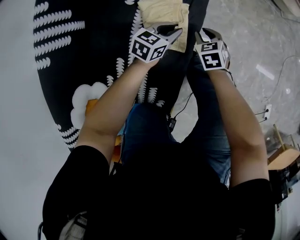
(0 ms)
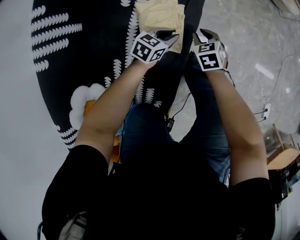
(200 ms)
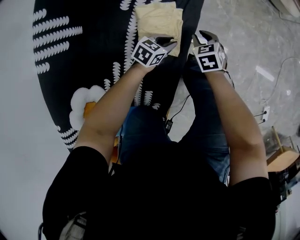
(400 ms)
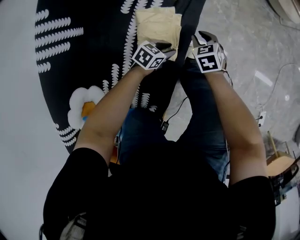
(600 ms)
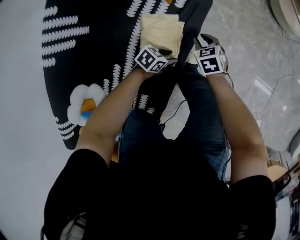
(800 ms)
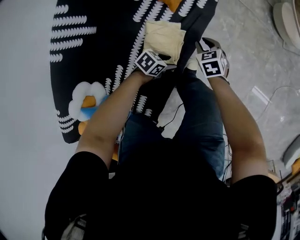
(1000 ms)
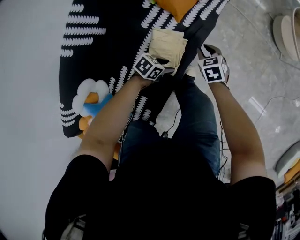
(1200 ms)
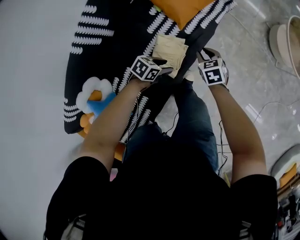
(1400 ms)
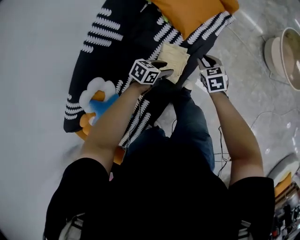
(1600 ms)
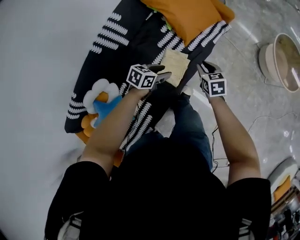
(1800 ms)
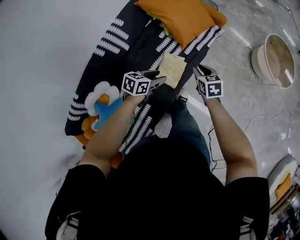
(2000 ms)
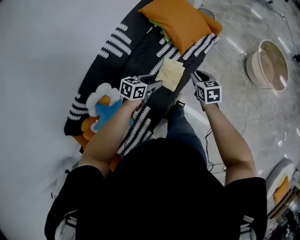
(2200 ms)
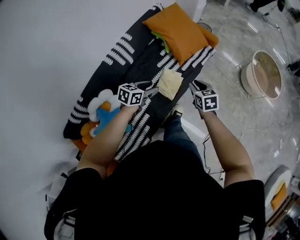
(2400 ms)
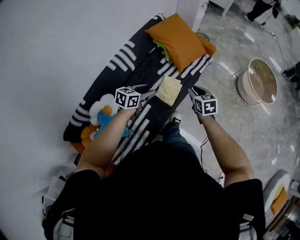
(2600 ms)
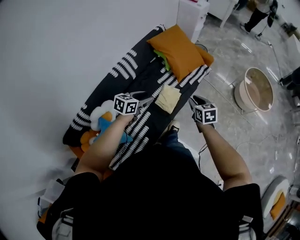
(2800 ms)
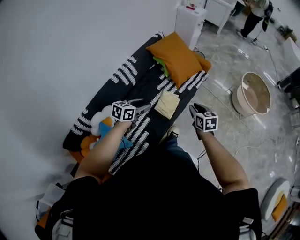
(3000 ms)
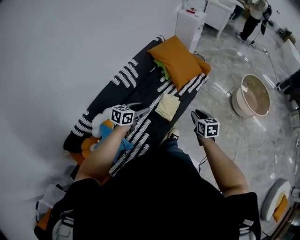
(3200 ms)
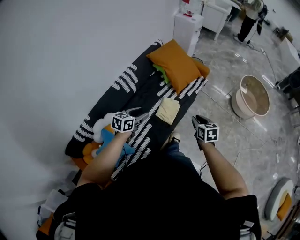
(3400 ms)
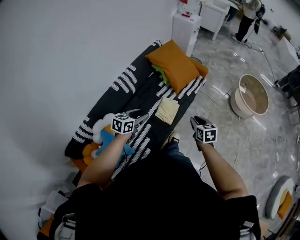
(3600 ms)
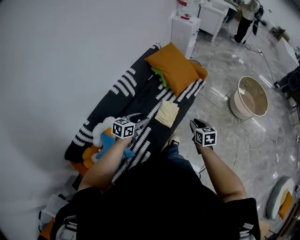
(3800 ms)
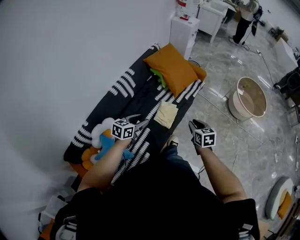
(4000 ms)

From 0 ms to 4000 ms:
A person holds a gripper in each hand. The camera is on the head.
From 0 ms to 1400 ms: The left gripper is displaced upward by roughly 10 cm, changes its angle by approximately 20 degrees, and opens. Meanwhile the right gripper shifts roughly 20 cm upward.
From 1400 ms to 2600 ms: Both grippers move upward and backward, approximately 40 cm. The left gripper swivels roughly 30 degrees.
From 2600 ms to 4000 ms: Both grippers travel together backward, about 10 cm.

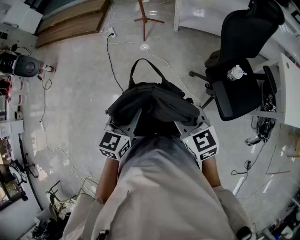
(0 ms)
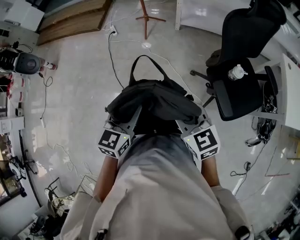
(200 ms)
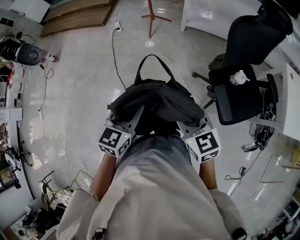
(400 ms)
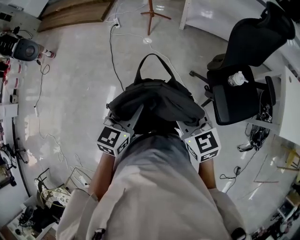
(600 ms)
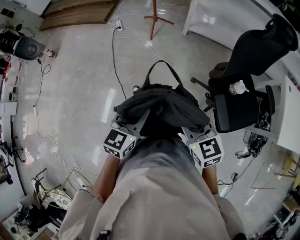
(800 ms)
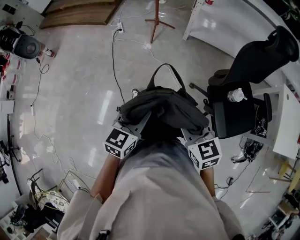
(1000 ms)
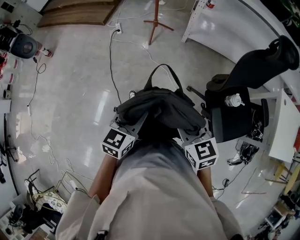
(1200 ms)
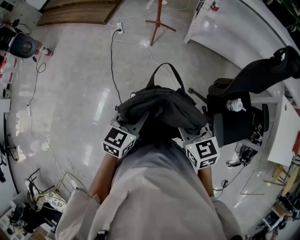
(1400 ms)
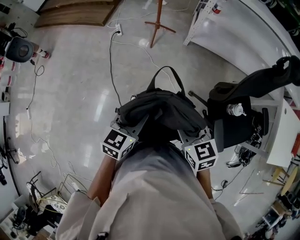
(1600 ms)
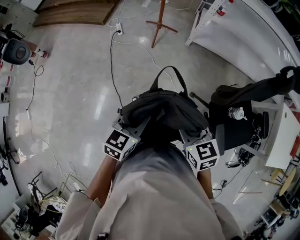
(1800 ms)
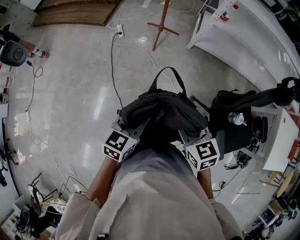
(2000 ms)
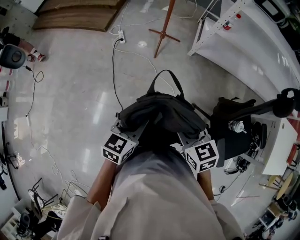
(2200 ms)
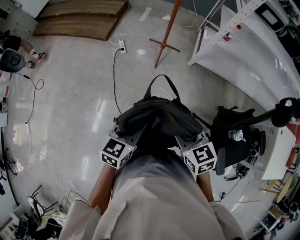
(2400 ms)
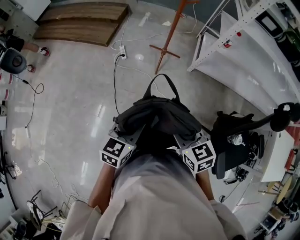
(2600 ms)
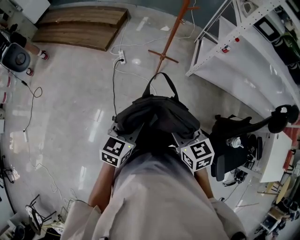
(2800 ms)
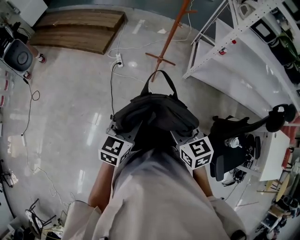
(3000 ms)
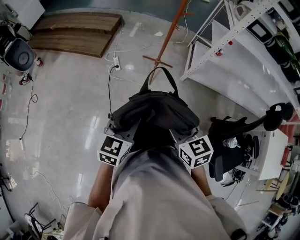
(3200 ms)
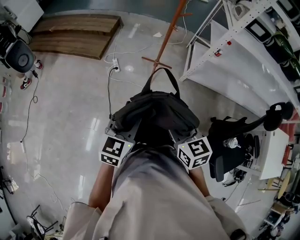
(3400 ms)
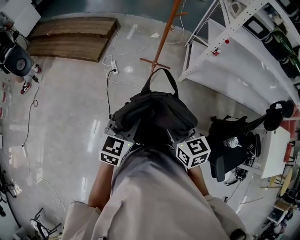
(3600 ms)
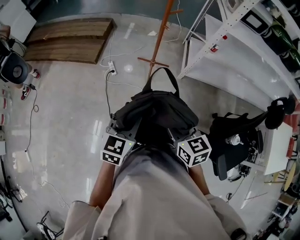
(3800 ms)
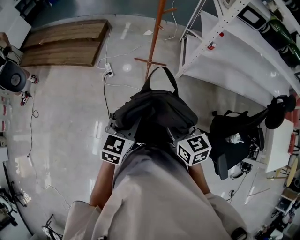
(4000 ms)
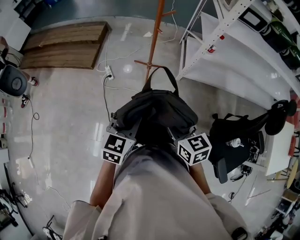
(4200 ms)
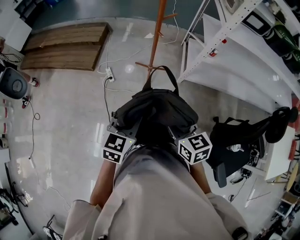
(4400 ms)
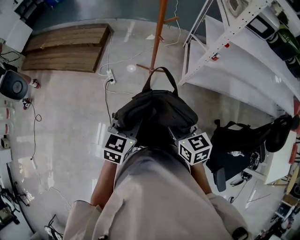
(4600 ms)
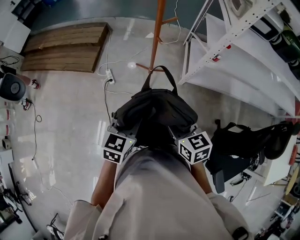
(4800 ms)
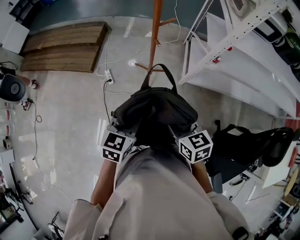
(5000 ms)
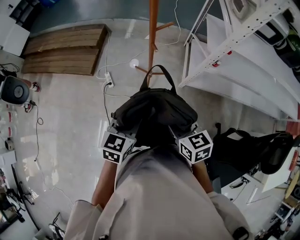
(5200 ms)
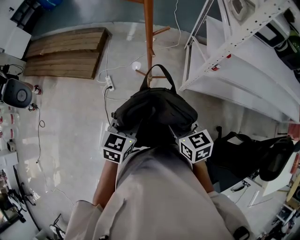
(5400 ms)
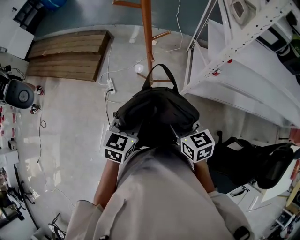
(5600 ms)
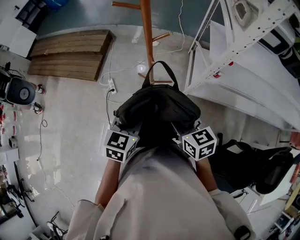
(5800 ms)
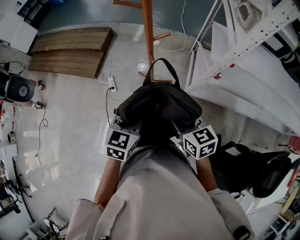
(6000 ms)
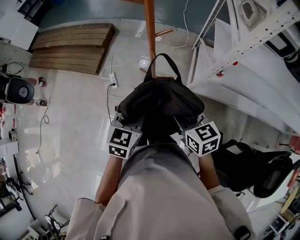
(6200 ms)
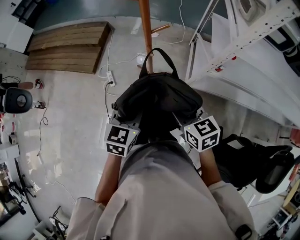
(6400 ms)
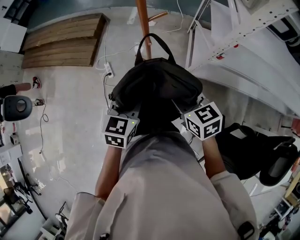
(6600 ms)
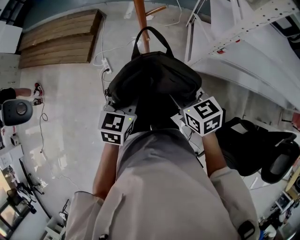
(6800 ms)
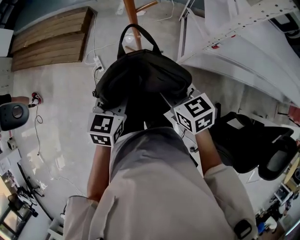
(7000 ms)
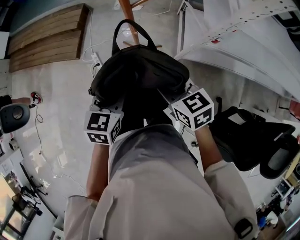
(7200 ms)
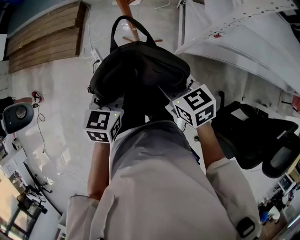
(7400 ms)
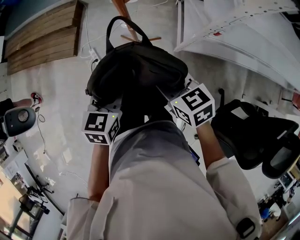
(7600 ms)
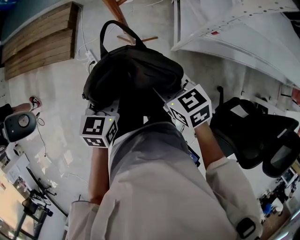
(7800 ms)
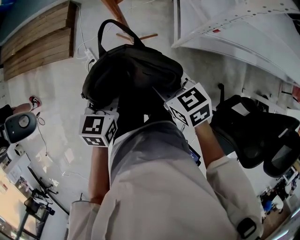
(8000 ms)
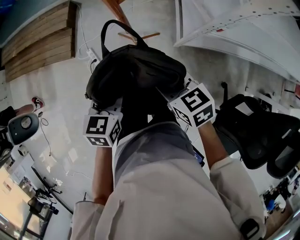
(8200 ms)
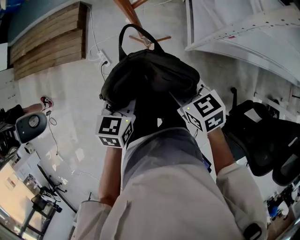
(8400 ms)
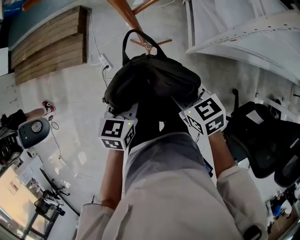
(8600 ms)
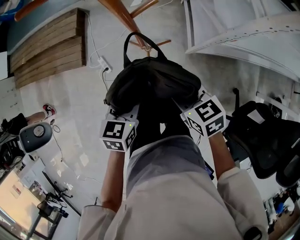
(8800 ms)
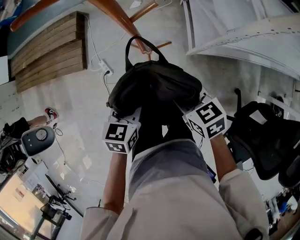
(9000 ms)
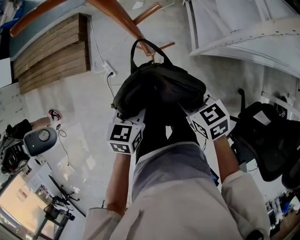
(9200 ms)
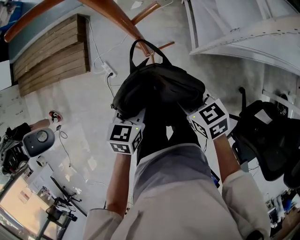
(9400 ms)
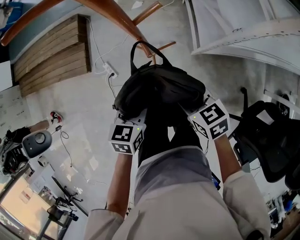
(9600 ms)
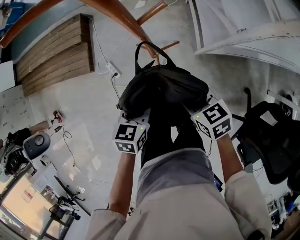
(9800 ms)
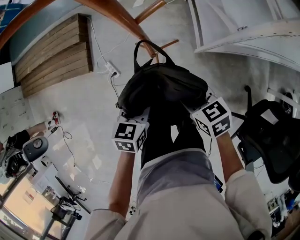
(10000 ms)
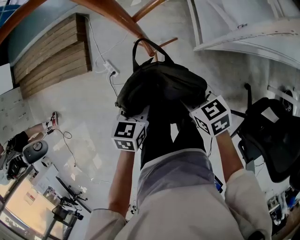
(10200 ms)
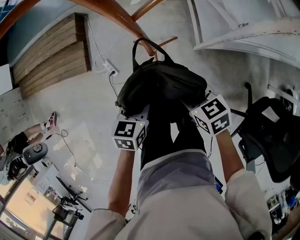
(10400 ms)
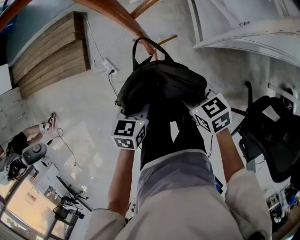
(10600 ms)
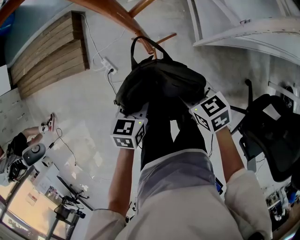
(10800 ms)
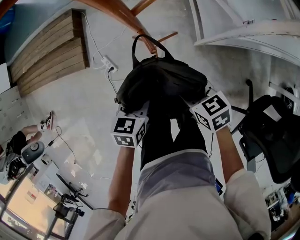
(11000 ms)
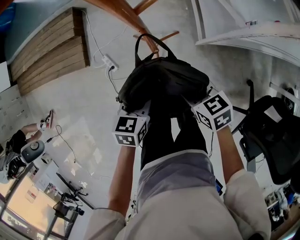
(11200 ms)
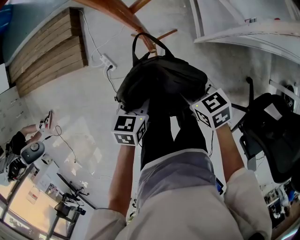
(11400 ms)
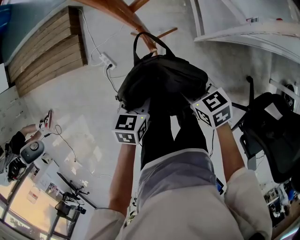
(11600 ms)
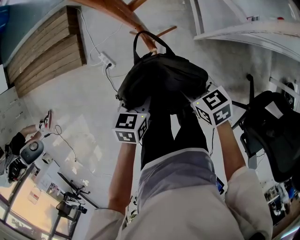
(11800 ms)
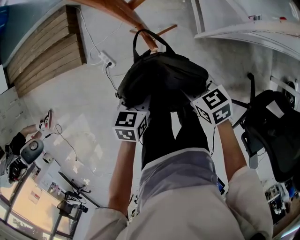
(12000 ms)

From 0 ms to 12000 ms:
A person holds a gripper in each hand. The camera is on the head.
From 0 ms to 1600 ms: Both grippers move forward, roughly 15 cm.
From 1600 ms to 3000 ms: The two grippers go about 30 cm forward and to the left.
From 3000 ms to 4400 ms: The grippers both shift forward and to the right by some 15 cm.
From 4400 ms to 6000 ms: Both grippers move forward and to the right, some 25 cm.
From 6000 ms to 7600 ms: The grippers both shift forward and downward by some 10 cm.
From 7600 ms to 9000 ms: The two grippers go some 5 cm downward.
From 9000 ms to 10400 ms: Both grippers travel together downward, some 5 cm.
From 10400 ms to 12000 ms: Both grippers travel together downward, roughly 5 cm.

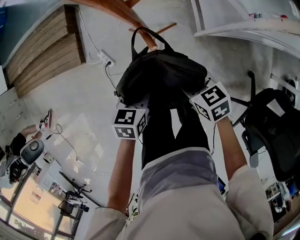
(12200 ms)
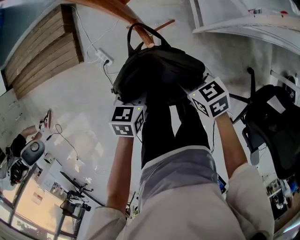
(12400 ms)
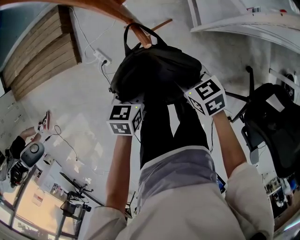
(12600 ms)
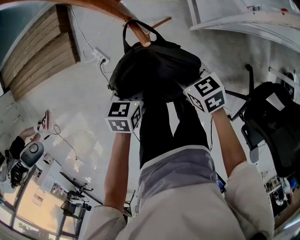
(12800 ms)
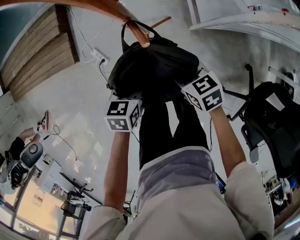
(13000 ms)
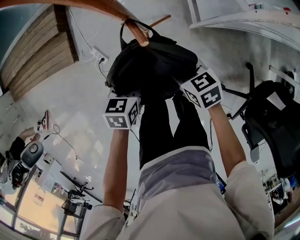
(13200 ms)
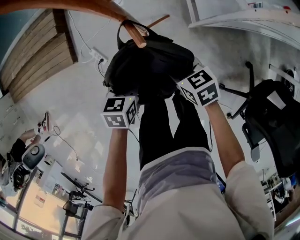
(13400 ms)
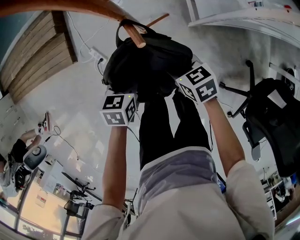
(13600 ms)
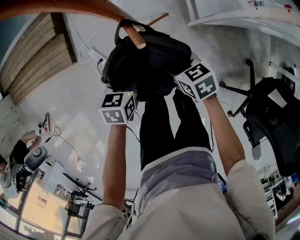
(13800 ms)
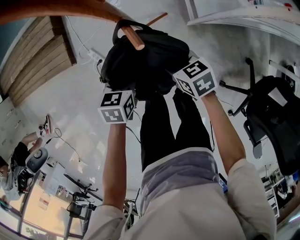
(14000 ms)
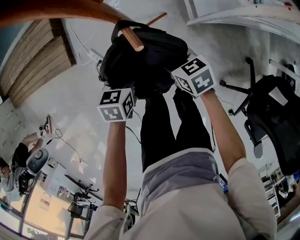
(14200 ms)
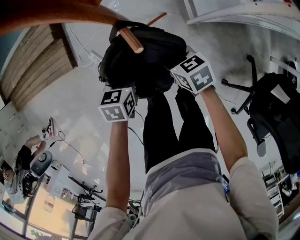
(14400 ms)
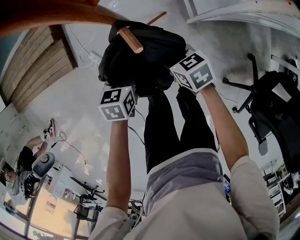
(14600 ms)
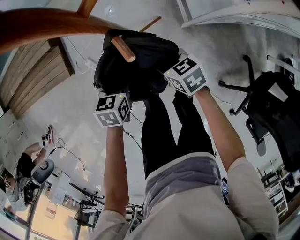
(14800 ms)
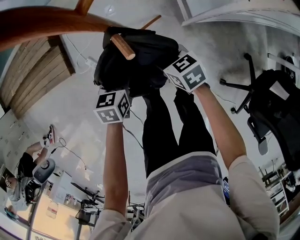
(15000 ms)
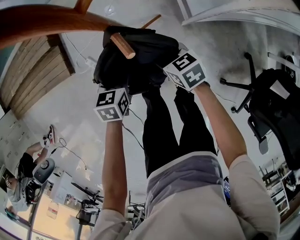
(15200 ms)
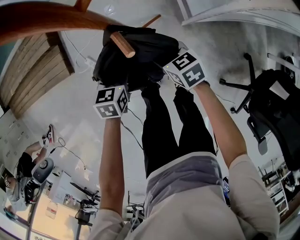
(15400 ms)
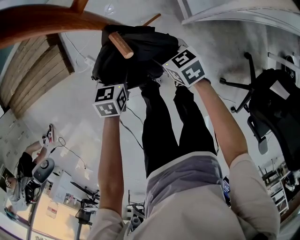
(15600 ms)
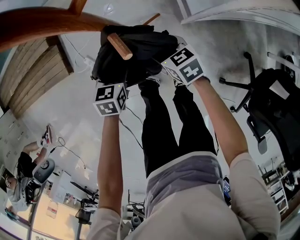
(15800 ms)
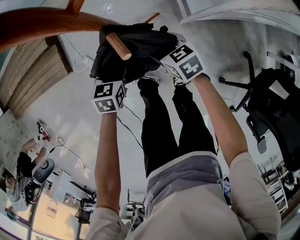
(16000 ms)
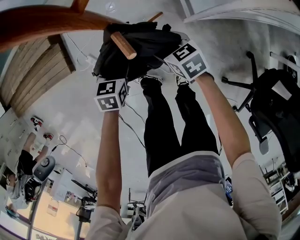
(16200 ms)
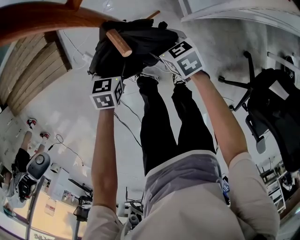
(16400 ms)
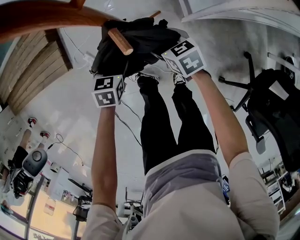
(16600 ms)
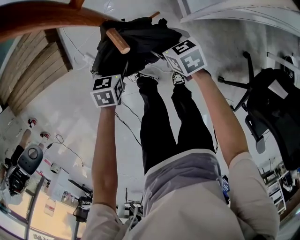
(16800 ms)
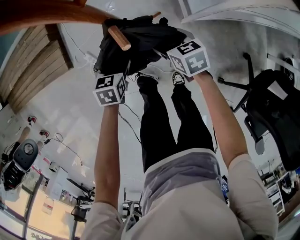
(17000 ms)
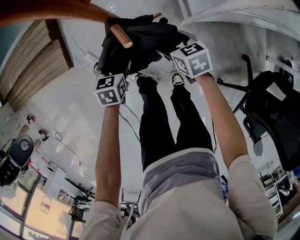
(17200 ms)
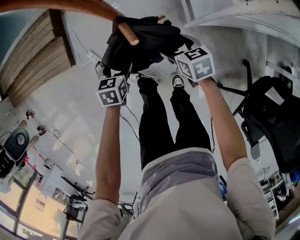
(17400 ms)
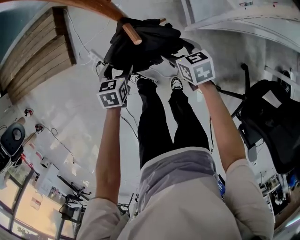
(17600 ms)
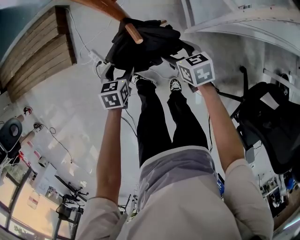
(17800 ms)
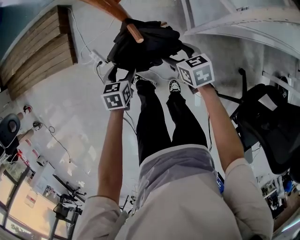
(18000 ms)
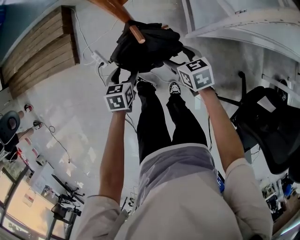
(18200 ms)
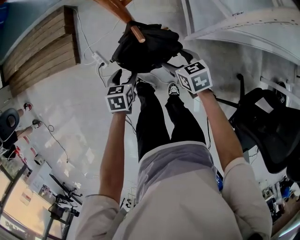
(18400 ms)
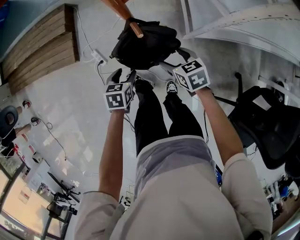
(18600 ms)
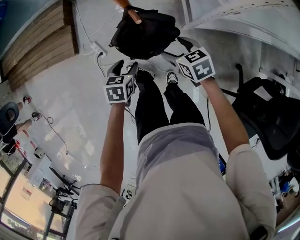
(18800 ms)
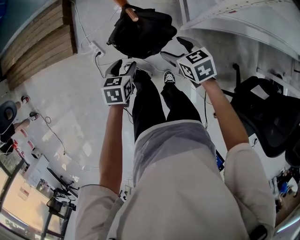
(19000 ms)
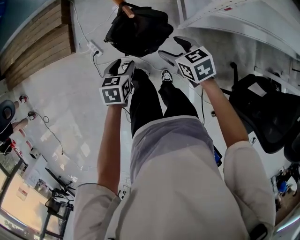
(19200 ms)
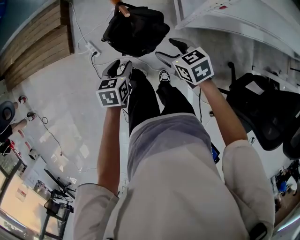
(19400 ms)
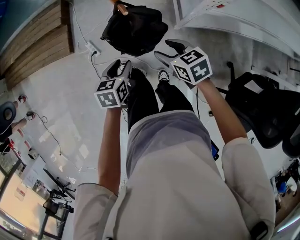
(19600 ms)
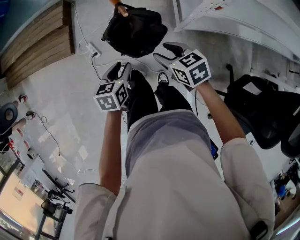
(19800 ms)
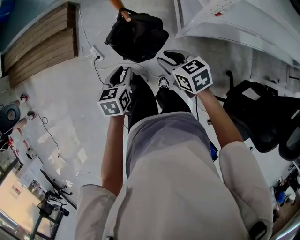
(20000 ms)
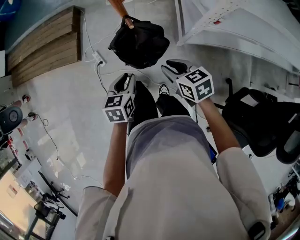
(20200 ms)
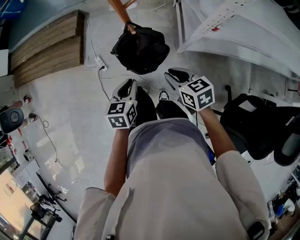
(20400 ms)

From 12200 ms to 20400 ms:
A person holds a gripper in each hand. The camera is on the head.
From 12200 ms to 13800 ms: Both grippers travel together downward, about 5 cm.
From 13800 ms to 15400 ms: The right gripper shifts by about 5 cm. Meanwhile the left gripper changes place by approximately 5 cm.
From 15400 ms to 17200 ms: The left gripper opens up. The right gripper shifts about 5 cm to the right, and opens.
From 17200 ms to 18800 ms: The left gripper heads backward and upward, covering roughly 15 cm; the right gripper is displaced upward and backward by approximately 10 cm.
From 18800 ms to 20400 ms: Both grippers move upward and backward, some 15 cm. The right gripper closes up; the left gripper closes.
